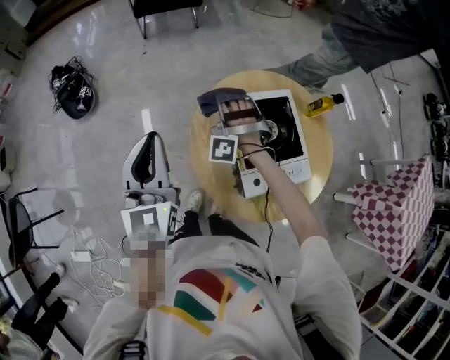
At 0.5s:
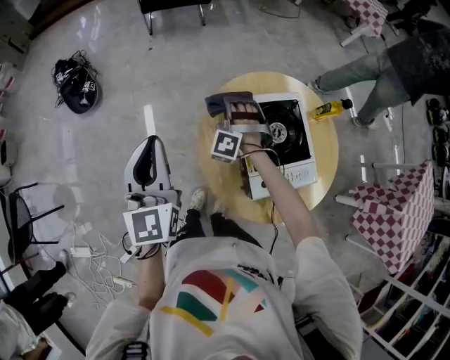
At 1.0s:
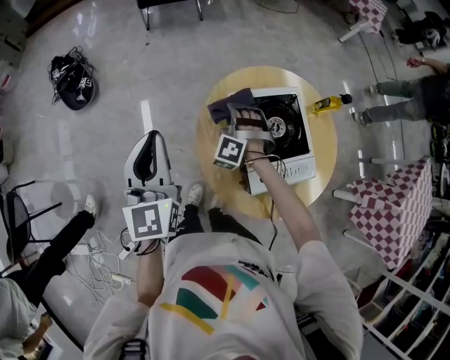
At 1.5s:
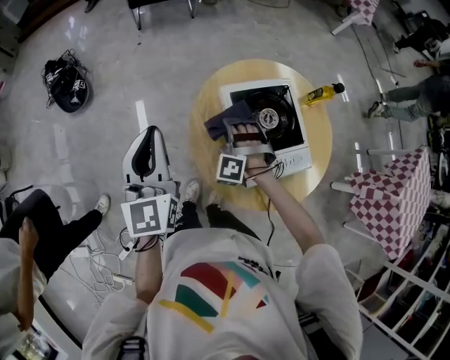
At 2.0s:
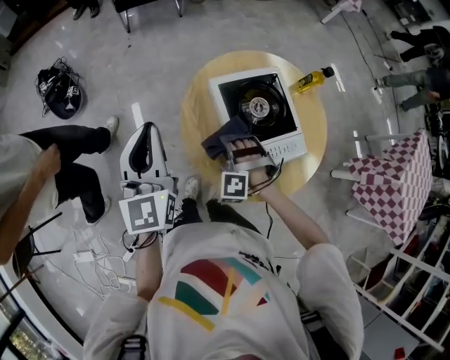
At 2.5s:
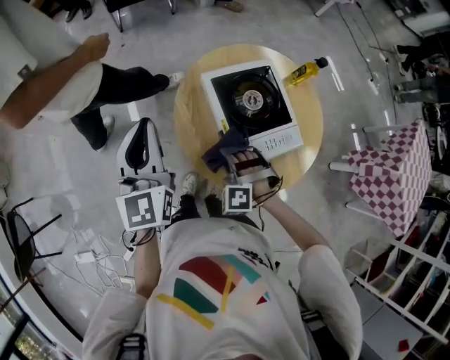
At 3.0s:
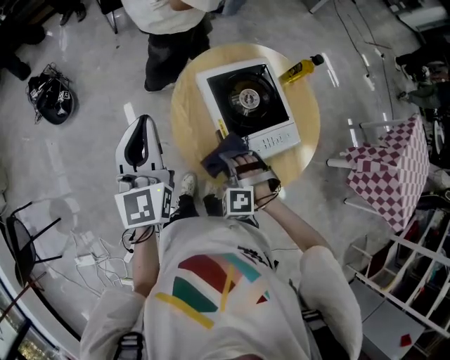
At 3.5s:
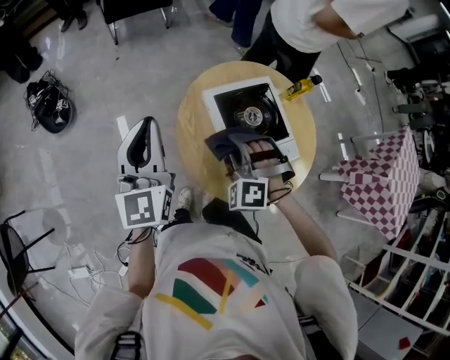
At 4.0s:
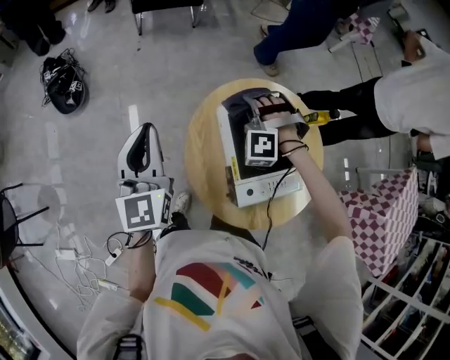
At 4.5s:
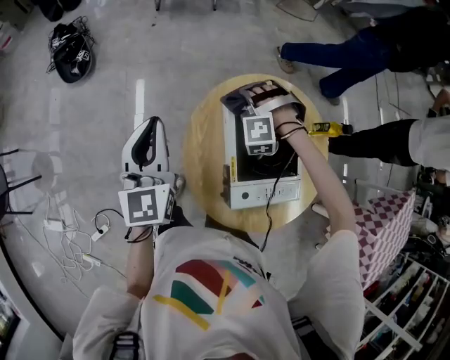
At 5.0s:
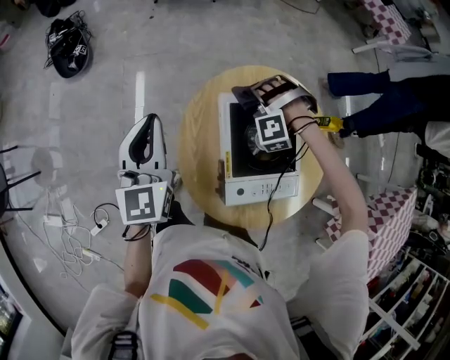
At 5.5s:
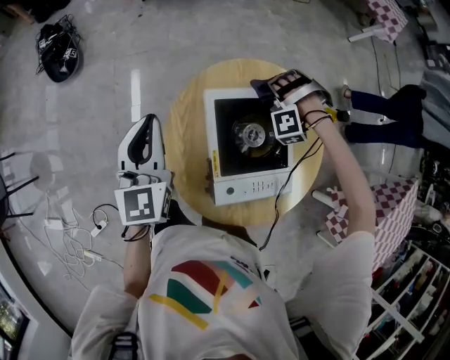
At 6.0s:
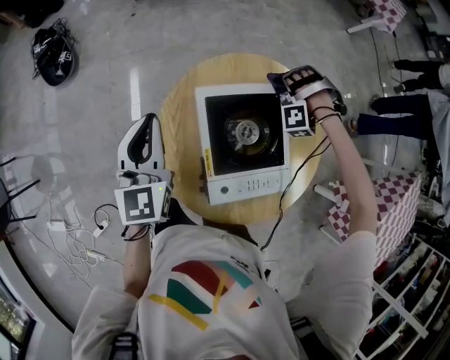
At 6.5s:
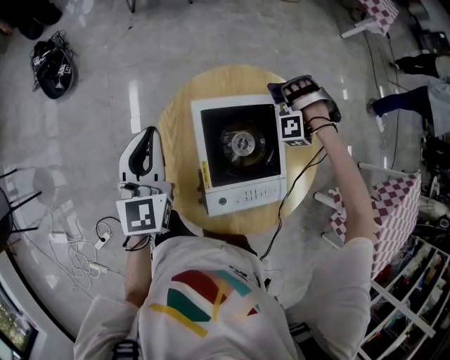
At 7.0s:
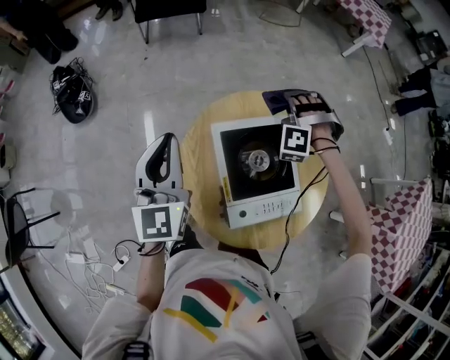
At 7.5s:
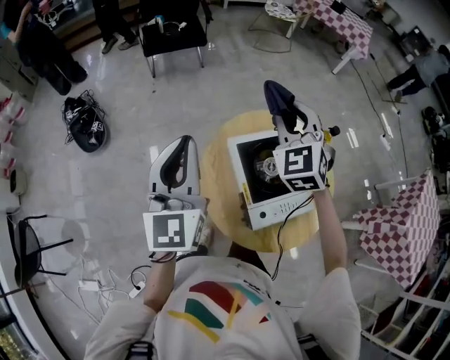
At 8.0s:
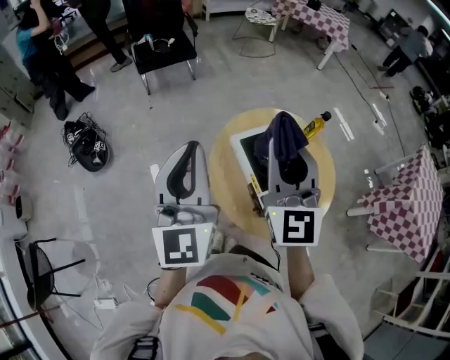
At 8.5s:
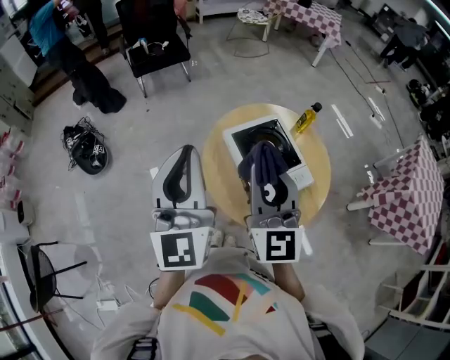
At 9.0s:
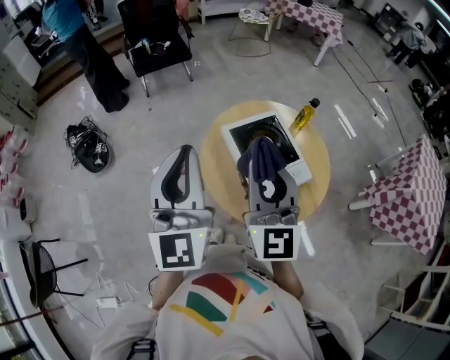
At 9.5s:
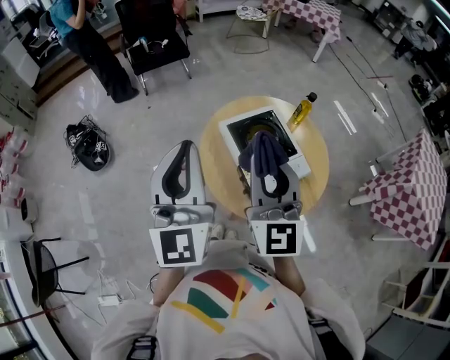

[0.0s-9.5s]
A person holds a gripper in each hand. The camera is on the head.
2.0s to 4.0s: The left gripper shifts by approximately 5 cm.
4.0s to 5.5s: The left gripper heads downward, covering roughly 5 cm.
5.5s to 7.5s: The left gripper heads upward, covering roughly 15 cm.
7.5s to 9.5s: The left gripper moves roughly 15 cm.

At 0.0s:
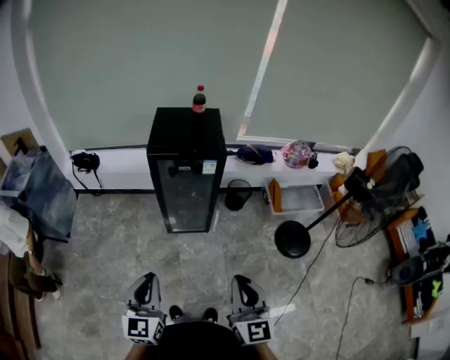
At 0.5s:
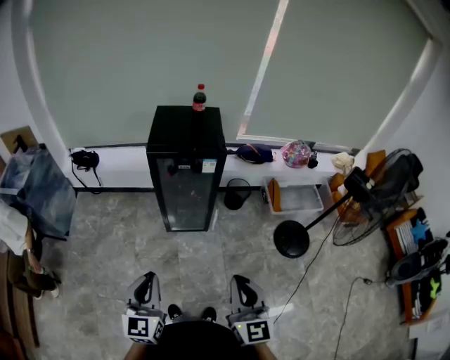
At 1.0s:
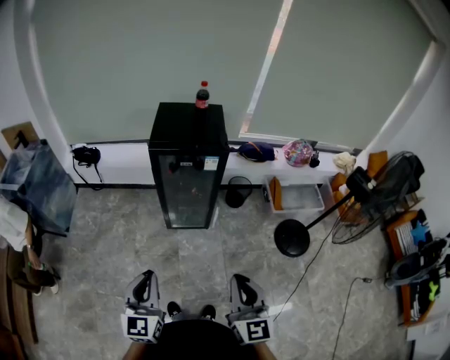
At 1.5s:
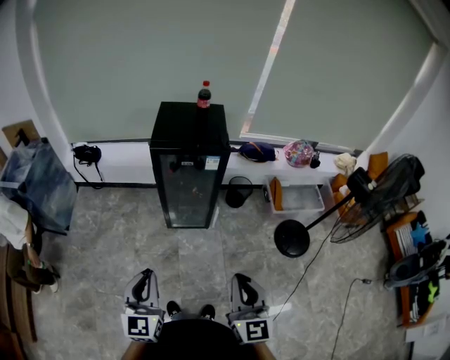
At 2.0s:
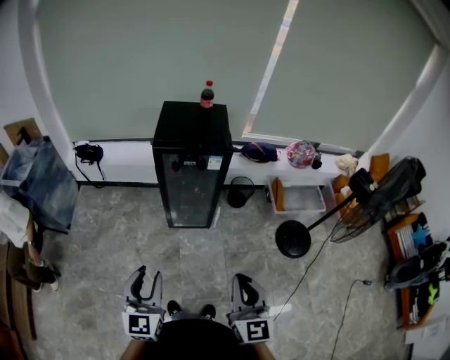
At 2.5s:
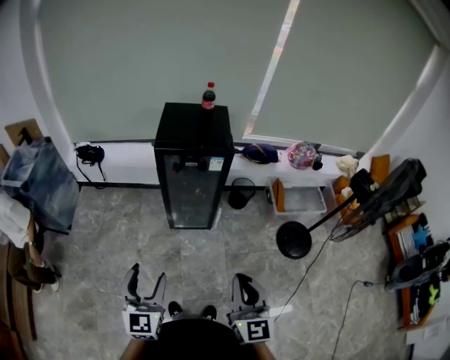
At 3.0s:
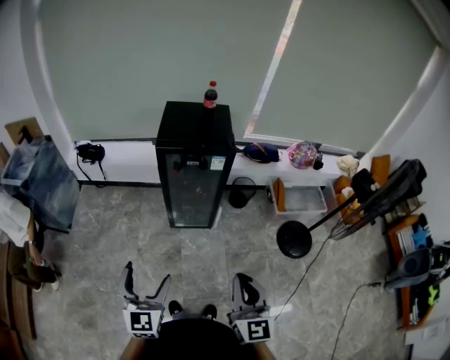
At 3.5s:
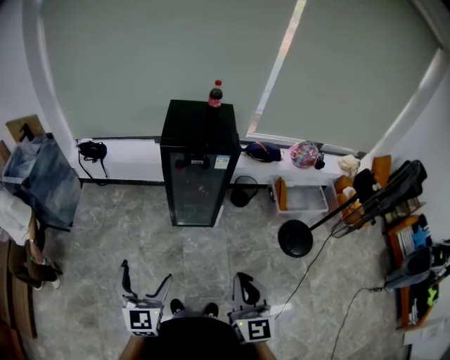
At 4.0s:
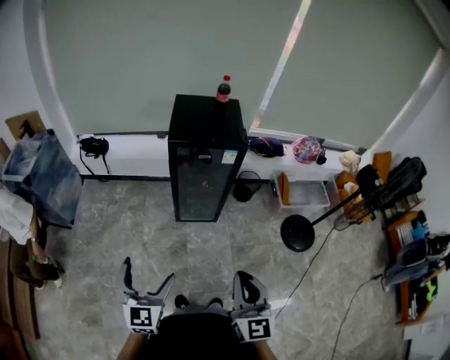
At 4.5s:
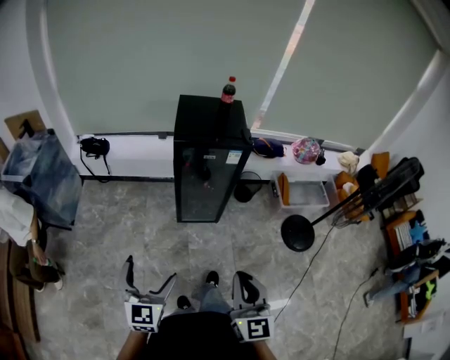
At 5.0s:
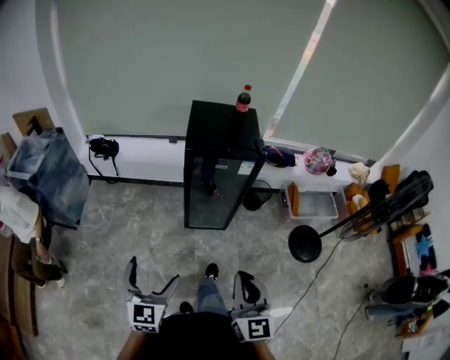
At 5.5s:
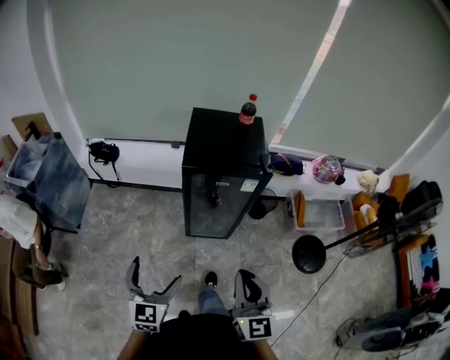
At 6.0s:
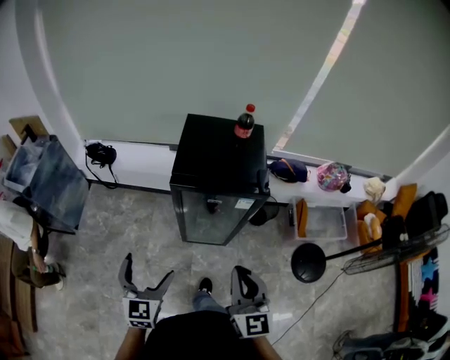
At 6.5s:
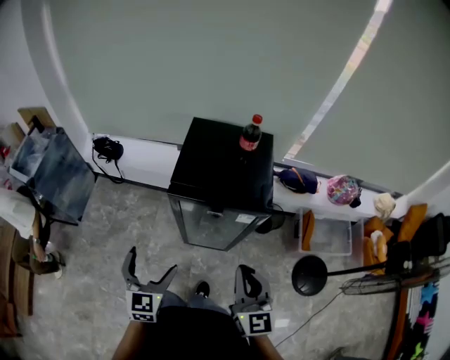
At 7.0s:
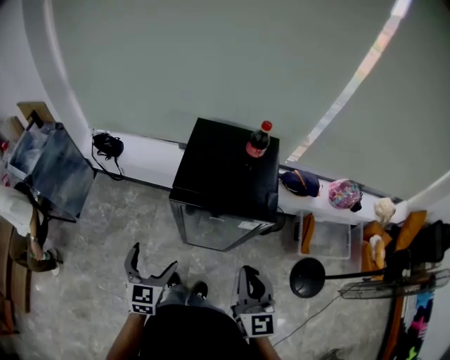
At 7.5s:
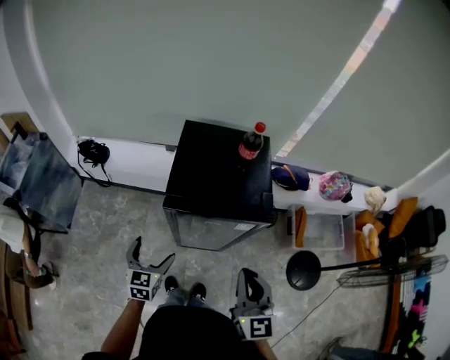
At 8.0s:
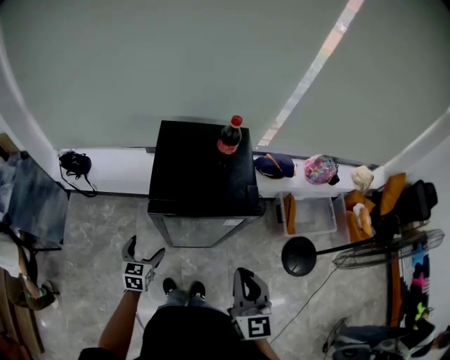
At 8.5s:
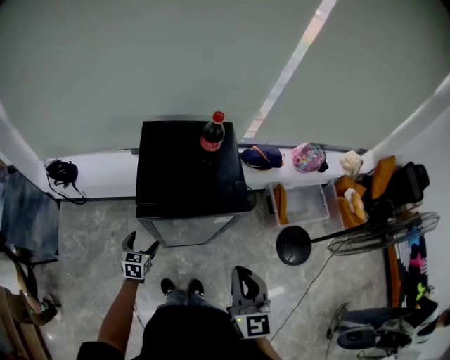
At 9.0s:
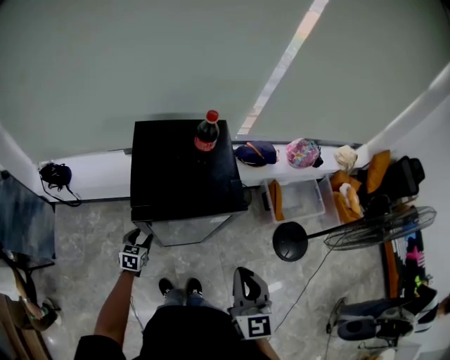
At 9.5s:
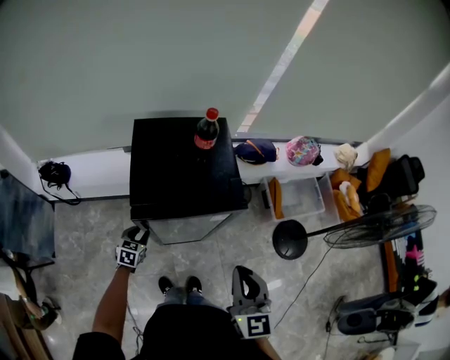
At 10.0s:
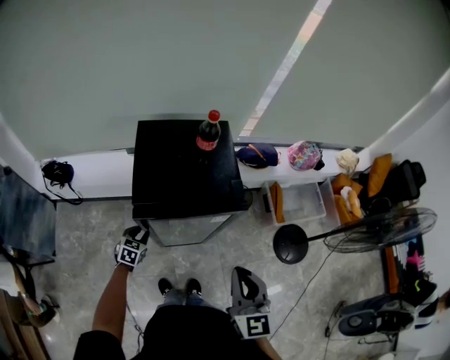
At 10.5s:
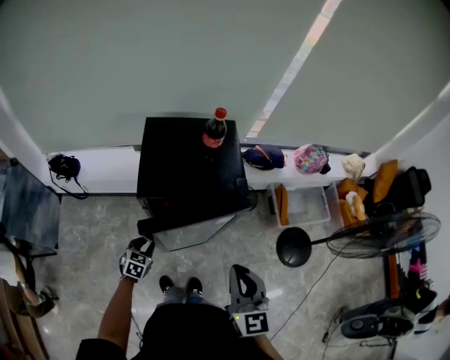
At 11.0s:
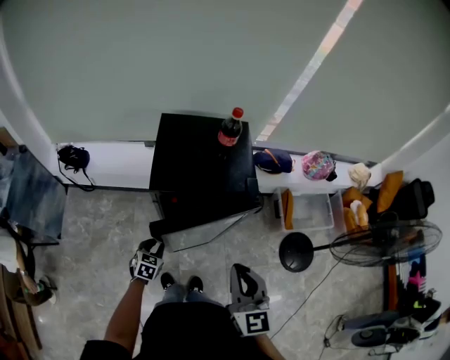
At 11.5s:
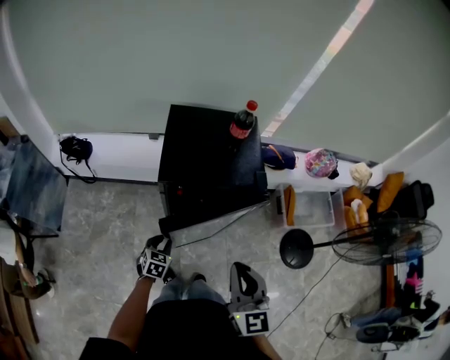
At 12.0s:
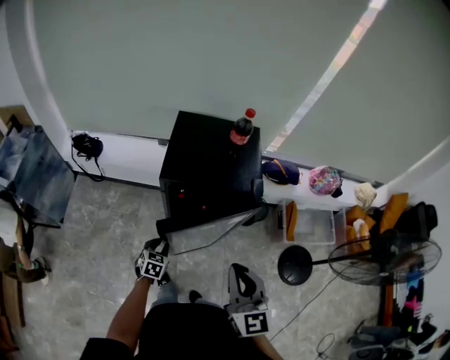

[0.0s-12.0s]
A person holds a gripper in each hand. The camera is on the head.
0.0s to 2.0s: The grippers move only a little.
2.0s to 4.0s: Both grippers travel together to the left, some 5 cm. The left gripper opens its fingers.
4.0s to 6.0s: The grippers both shift forward by some 25 cm.
6.0s to 8.0s: The right gripper is displaced forward by some 10 cm, while the left gripper heads forward and downward, covering approximately 25 cm, and changes its angle by approximately 20 degrees.
8.0s to 10.0s: The left gripper travels downward and forward by approximately 10 cm, changes its angle by some 20 degrees, and closes its fingers.
10.0s to 12.0s: The left gripper shifts approximately 10 cm backward.

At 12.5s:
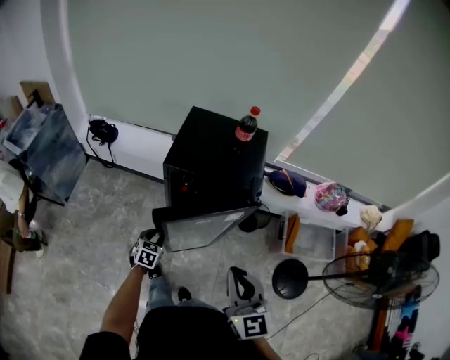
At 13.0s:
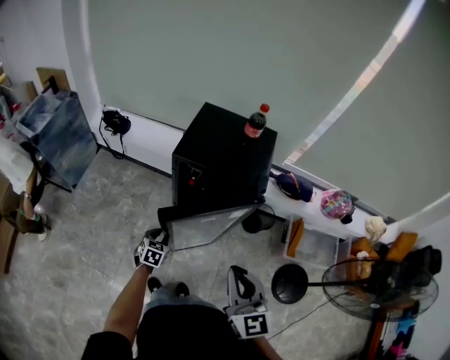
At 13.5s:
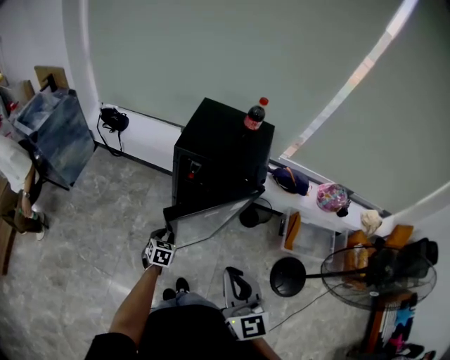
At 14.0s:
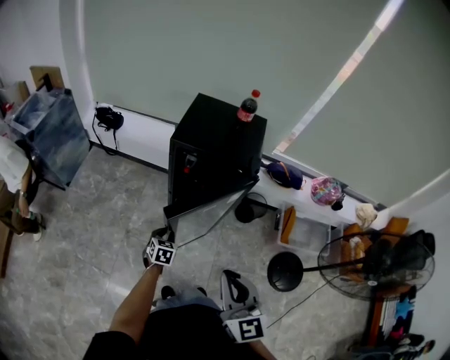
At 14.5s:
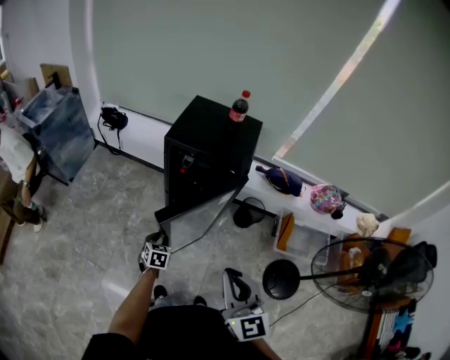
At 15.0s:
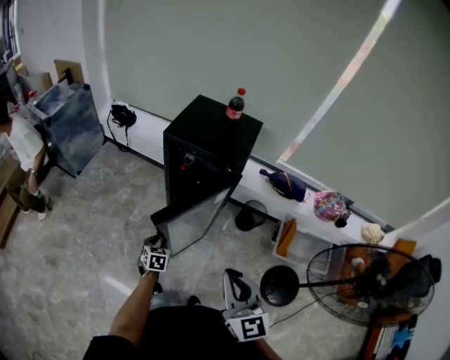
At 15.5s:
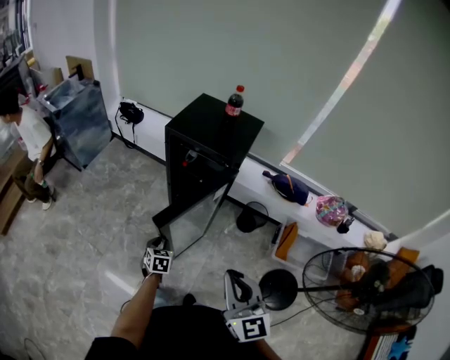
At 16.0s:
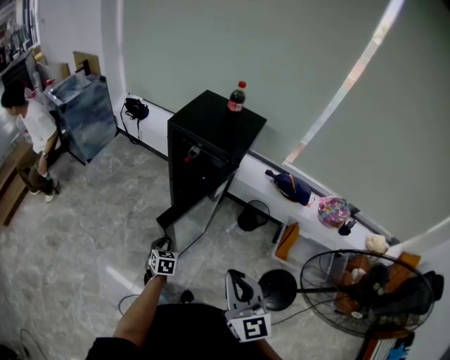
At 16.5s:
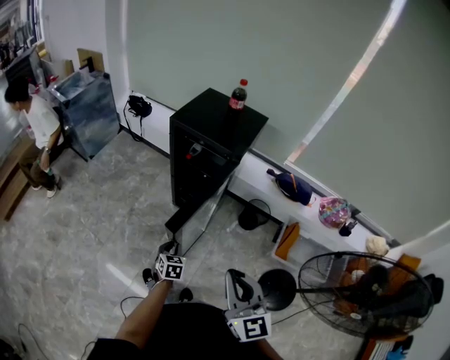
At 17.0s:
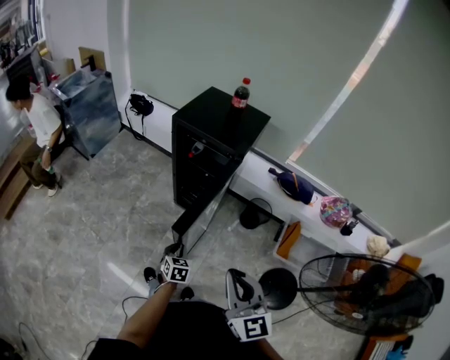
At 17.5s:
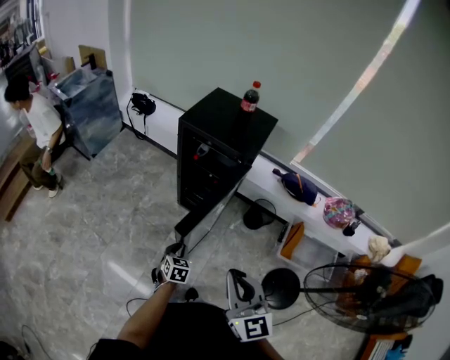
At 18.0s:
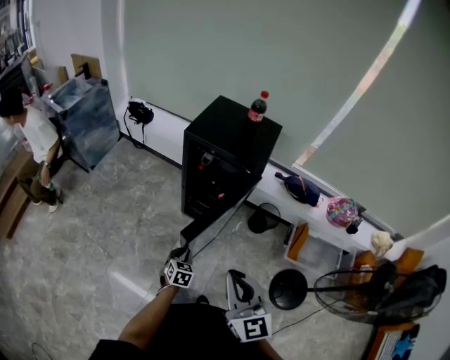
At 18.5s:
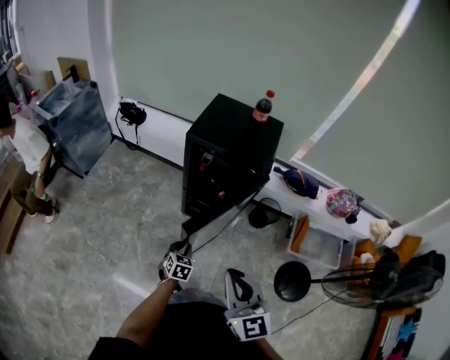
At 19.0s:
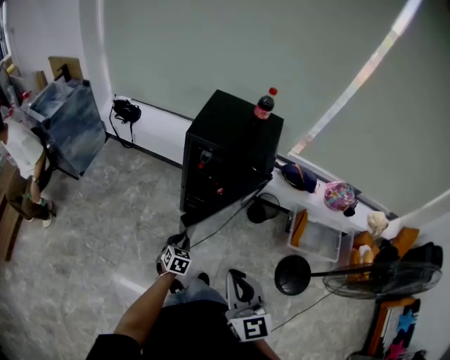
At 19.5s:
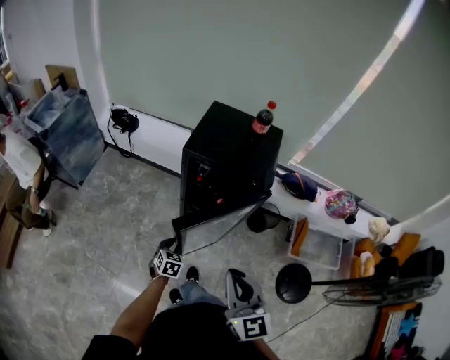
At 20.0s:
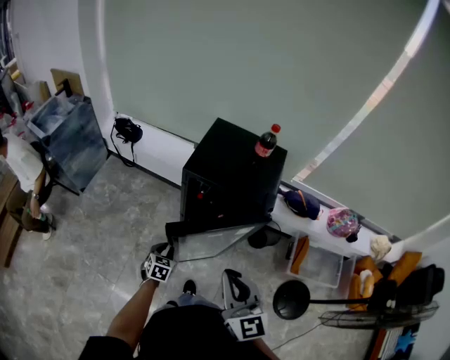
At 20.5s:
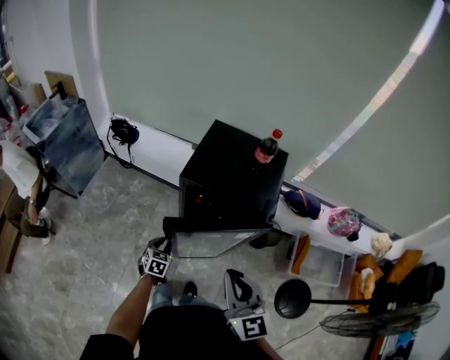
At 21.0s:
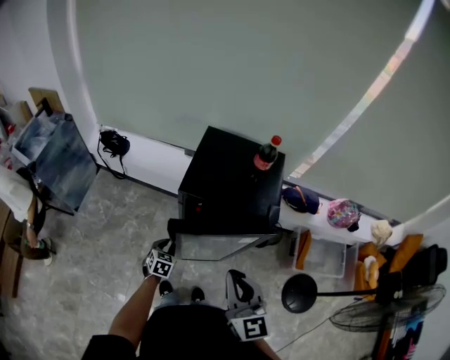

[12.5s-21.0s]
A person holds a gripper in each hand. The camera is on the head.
12.5s to 14.5s: The right gripper heads backward, covering some 10 cm. The left gripper shifts about 15 cm backward and to the right.
14.5s to 16.5s: The left gripper shifts about 20 cm backward and to the right. Meanwhile the right gripper travels to the right and backward by roughly 15 cm.
16.5s to 19.0s: The left gripper goes about 15 cm forward and to the left, and swivels about 20 degrees; the right gripper is displaced to the left and forward by about 20 cm.
19.0s to 21.0s: Both grippers move forward, approximately 20 cm.
